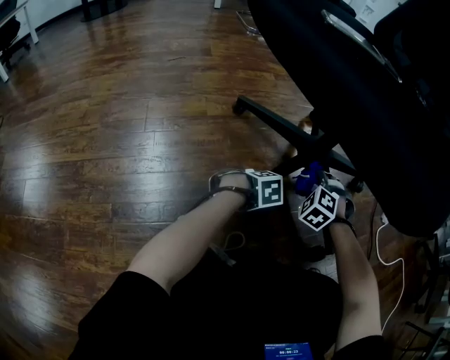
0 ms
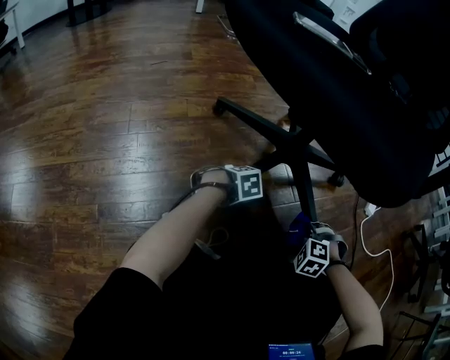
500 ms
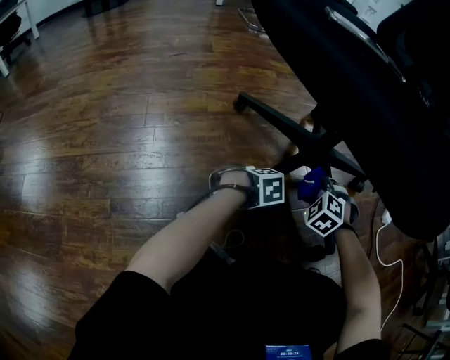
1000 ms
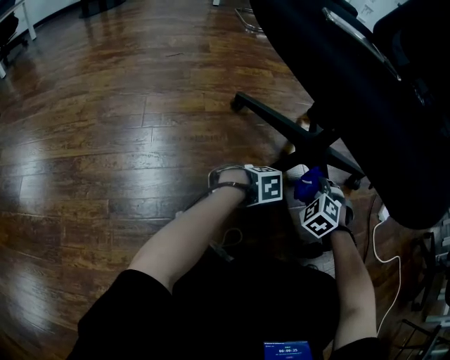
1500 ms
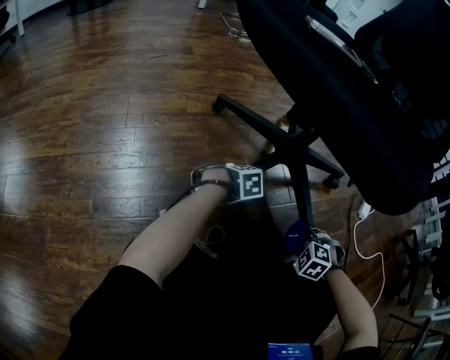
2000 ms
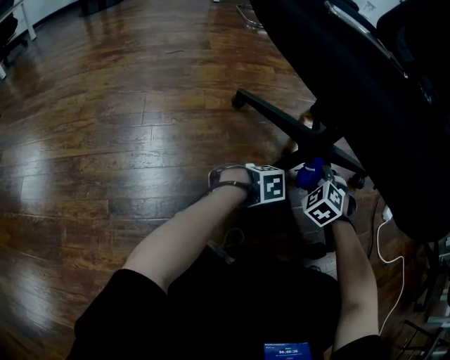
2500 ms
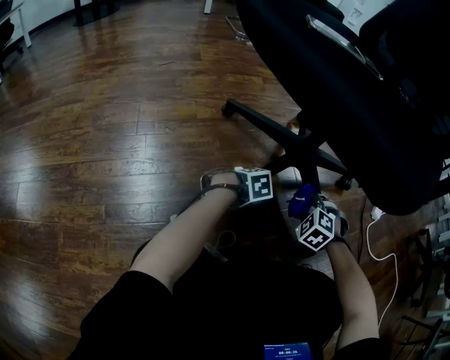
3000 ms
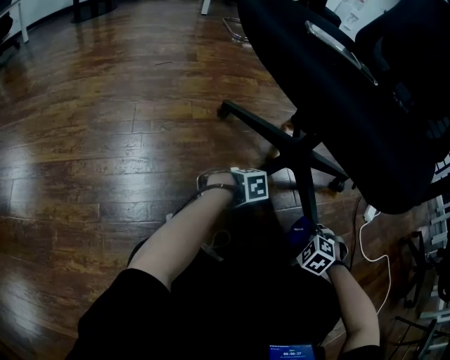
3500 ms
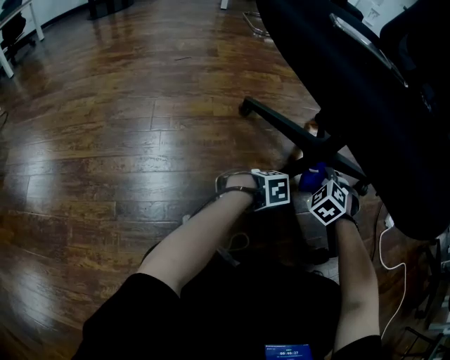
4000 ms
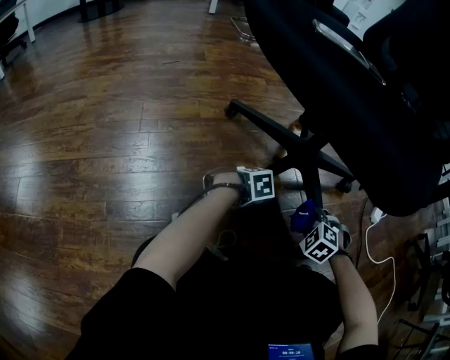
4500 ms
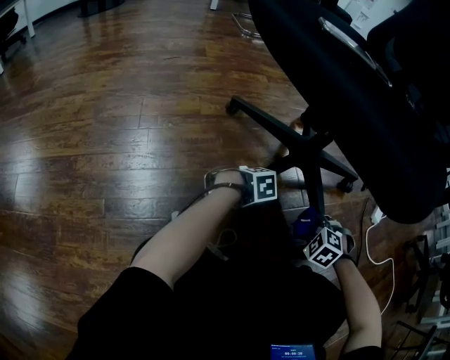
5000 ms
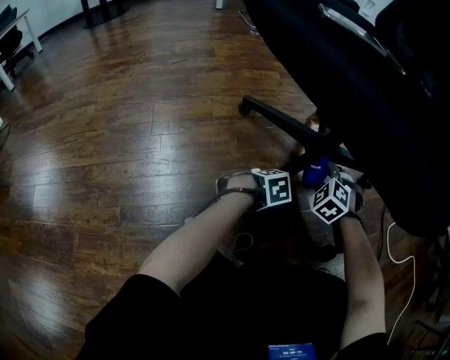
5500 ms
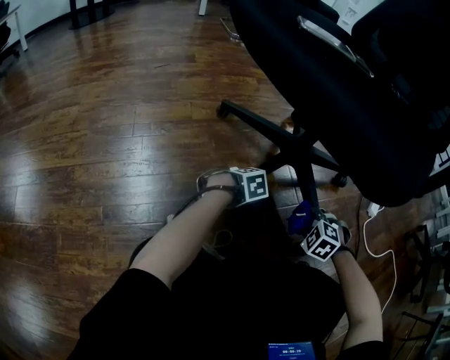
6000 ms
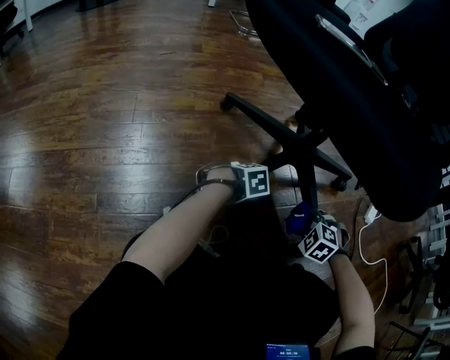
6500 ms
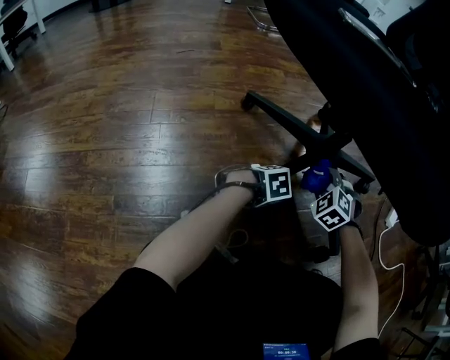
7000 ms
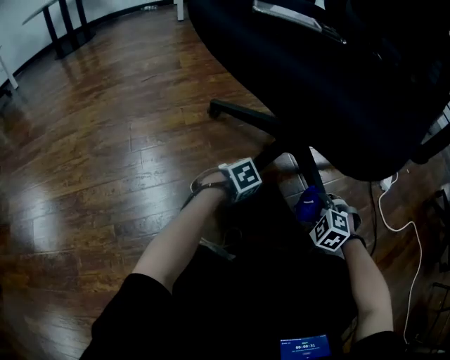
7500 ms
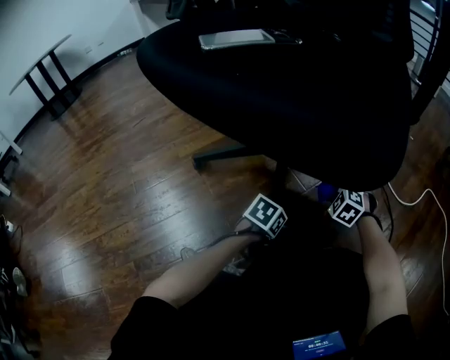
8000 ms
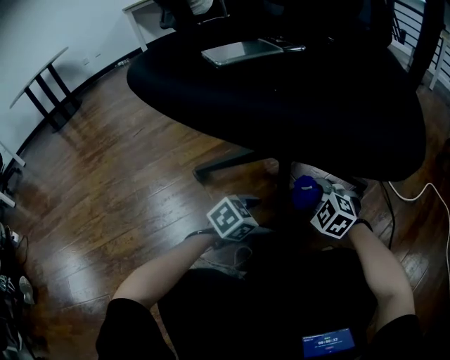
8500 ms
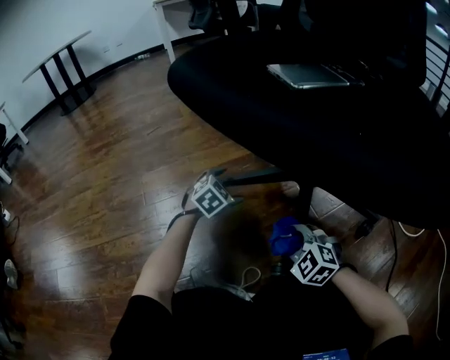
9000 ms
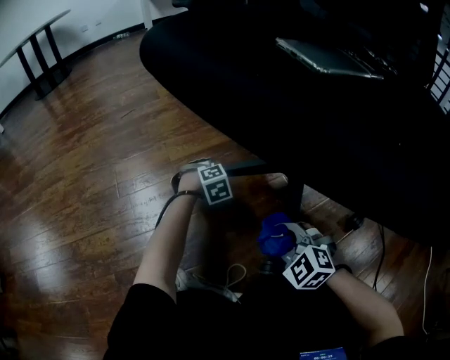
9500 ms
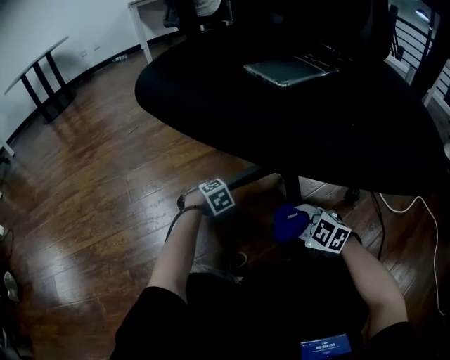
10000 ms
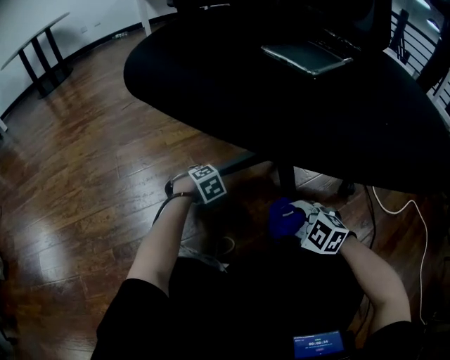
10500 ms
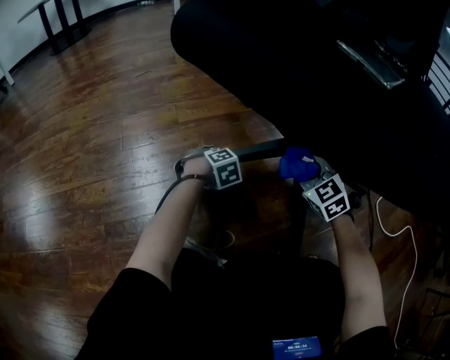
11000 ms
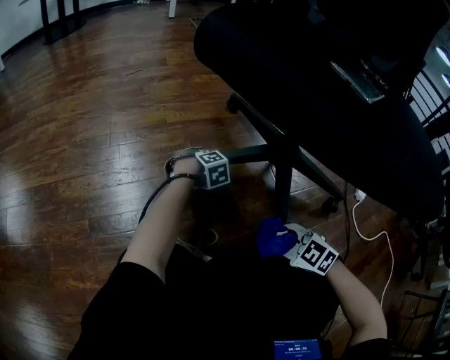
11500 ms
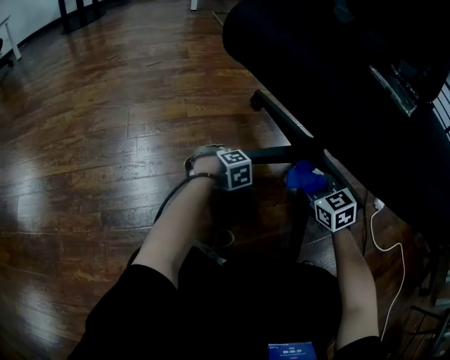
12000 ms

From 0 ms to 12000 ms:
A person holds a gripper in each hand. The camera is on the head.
From 0 ms to 2000 ms: The right gripper goes up and down, about 5 cm each way, reversing 2 times, and swivels approximately 20 degrees.
From 2000 ms to 4000 ms: The right gripper goes up and down, some 5 cm each way, reversing 2 times, and rotates some 20 degrees.
From 4000 ms to 6000 ms: The right gripper goes up and down, roughly 5 cm each way, reversing 2 times.
From 6000 ms to 8000 ms: The right gripper changes place by roughly 10 cm, and swivels approximately 20 degrees.
From 8000 ms to 10000 ms: The right gripper changes place by some 20 cm, and rotates roughly 40 degrees.
From 10000 ms to 12000 ms: The right gripper goes up and down, some 5 cm each way, reversing 2 times, and changes its angle by roughly 30 degrees.

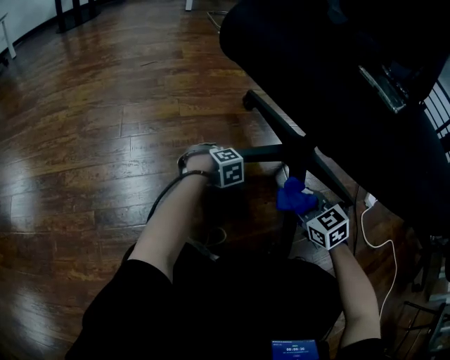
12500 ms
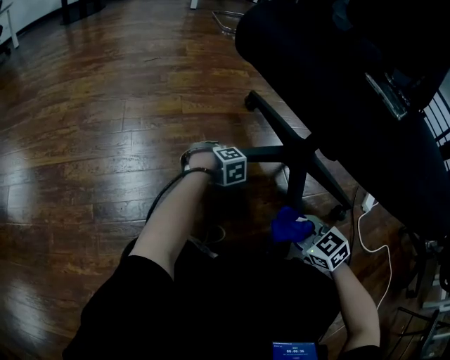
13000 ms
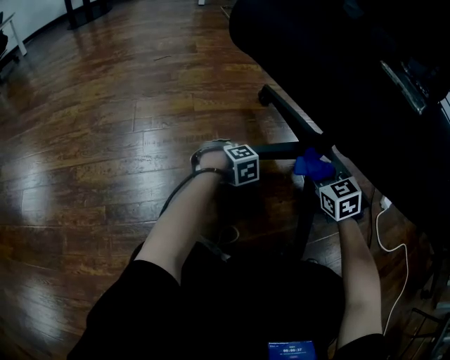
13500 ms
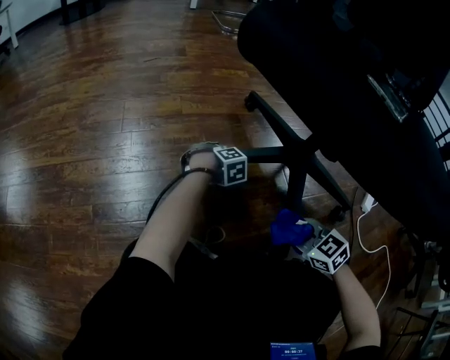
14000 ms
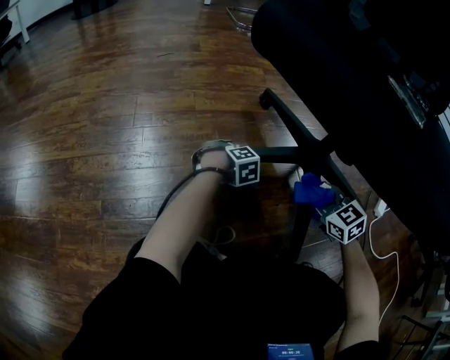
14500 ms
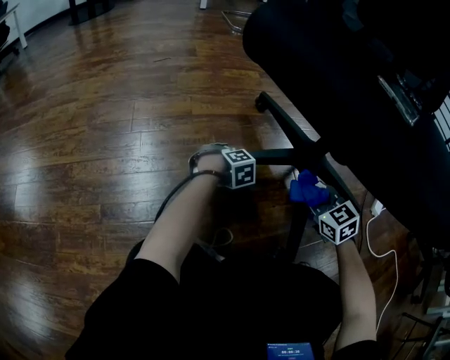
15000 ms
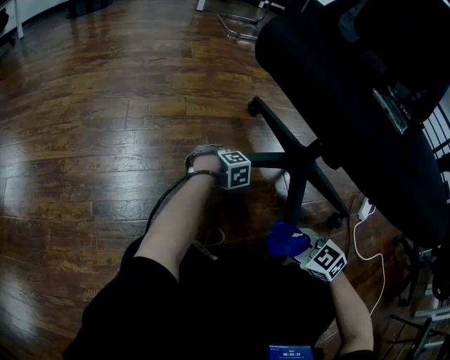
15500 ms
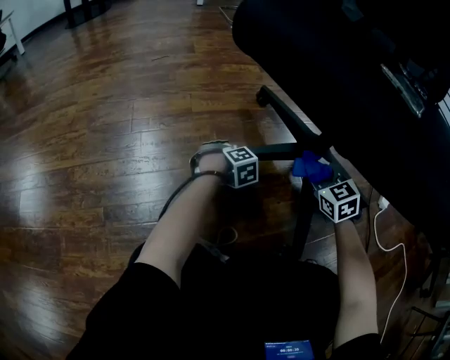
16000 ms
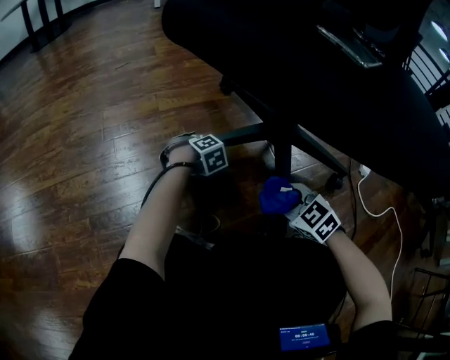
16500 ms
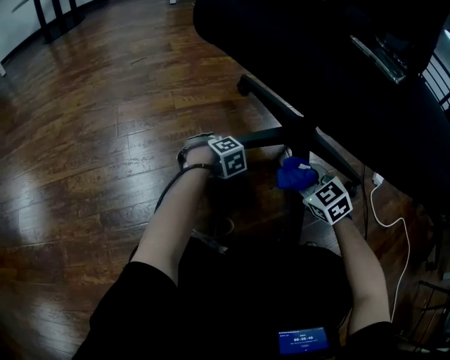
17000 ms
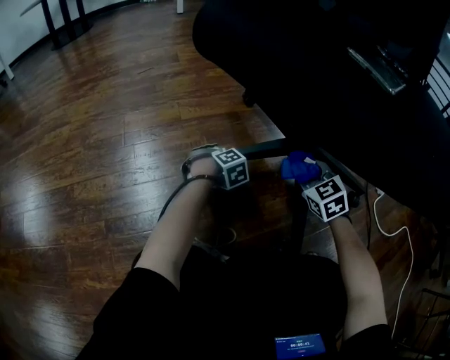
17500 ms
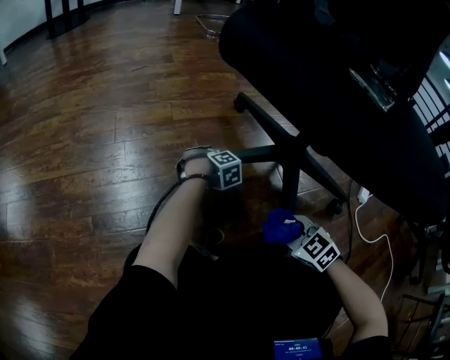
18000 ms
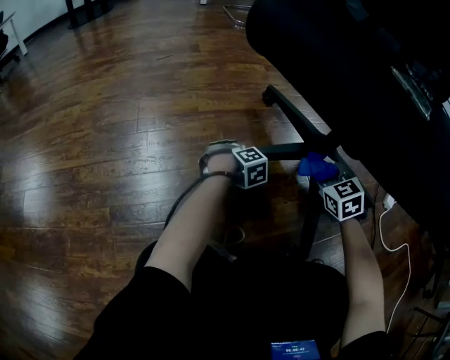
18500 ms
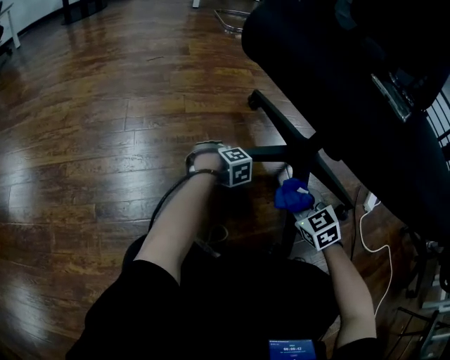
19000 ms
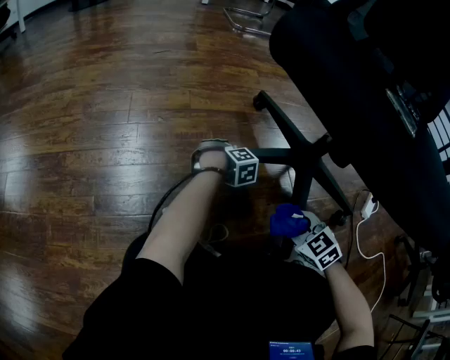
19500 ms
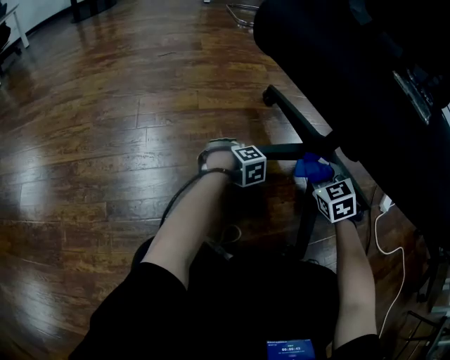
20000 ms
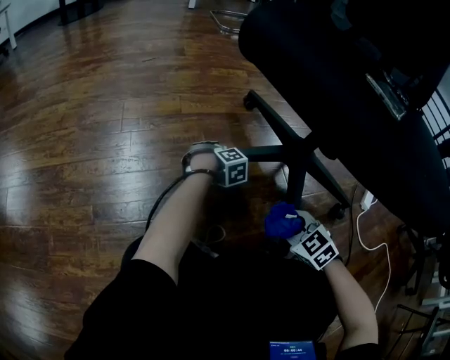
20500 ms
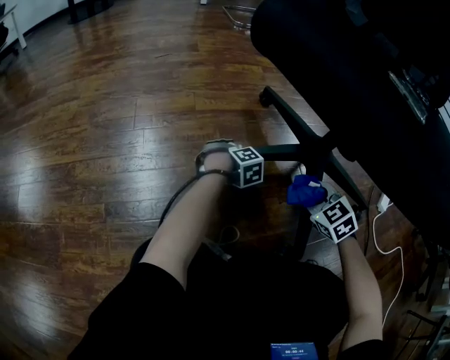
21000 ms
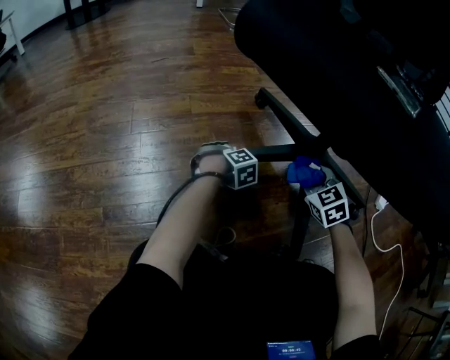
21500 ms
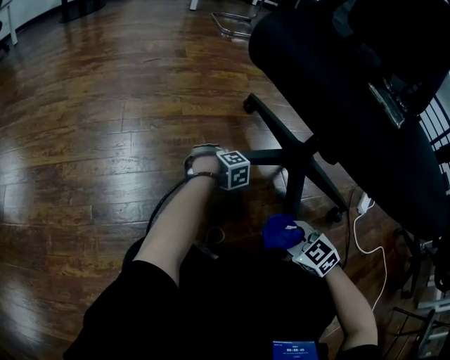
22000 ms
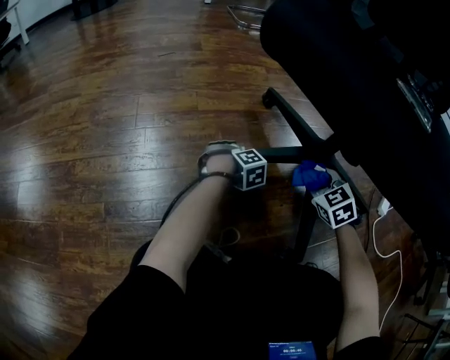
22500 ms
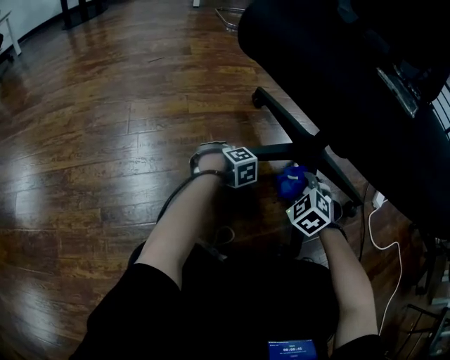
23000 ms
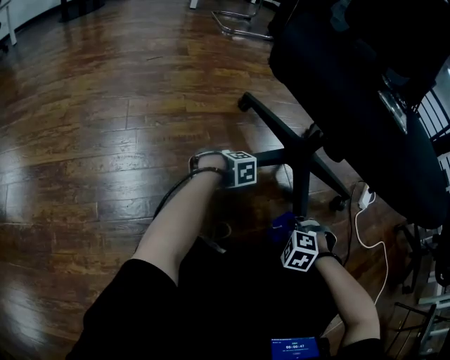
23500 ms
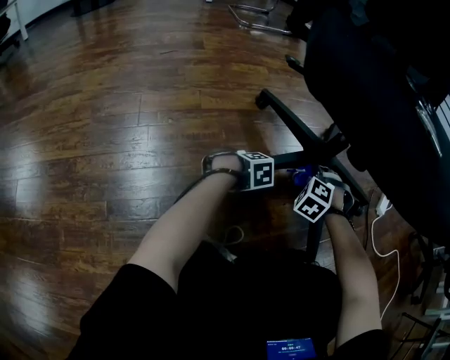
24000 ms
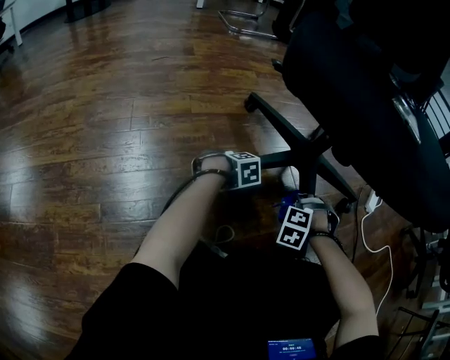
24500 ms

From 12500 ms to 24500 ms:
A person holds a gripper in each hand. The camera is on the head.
From 14500 ms to 16500 ms: The right gripper swings up and down, about 5 cm each way, with 2 reversals.
From 16500 ms to 18500 ms: The right gripper changes place by about 15 cm.
From 18500 ms to 20500 ms: The right gripper moves up and down over approximately 5 cm, changing direction 2 times, and swivels roughly 20 degrees.
From 20500 ms to 22500 ms: The right gripper goes up and down, about 5 cm each way, reversing 2 times.
From 22500 ms to 24500 ms: The right gripper swivels about 60 degrees.

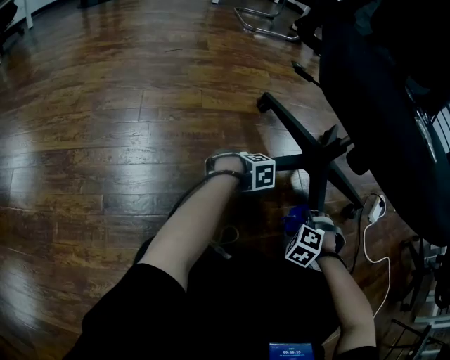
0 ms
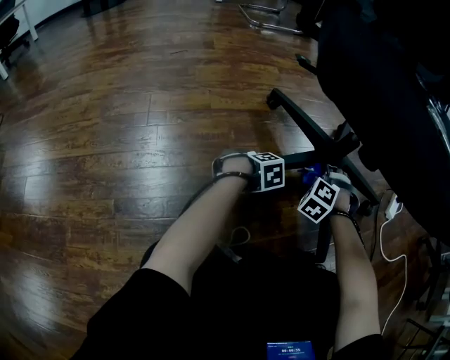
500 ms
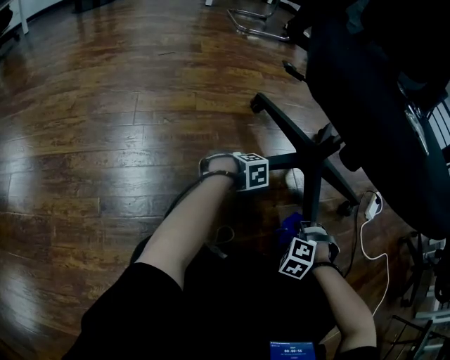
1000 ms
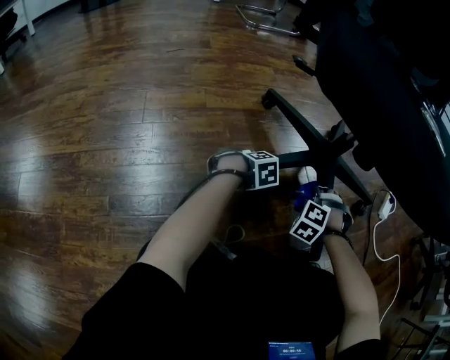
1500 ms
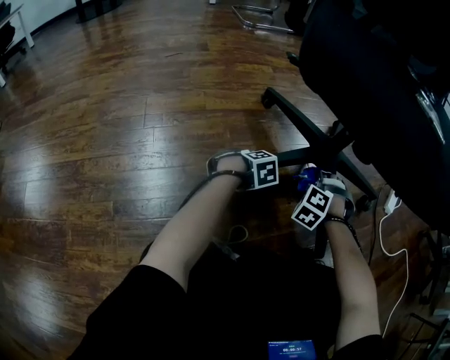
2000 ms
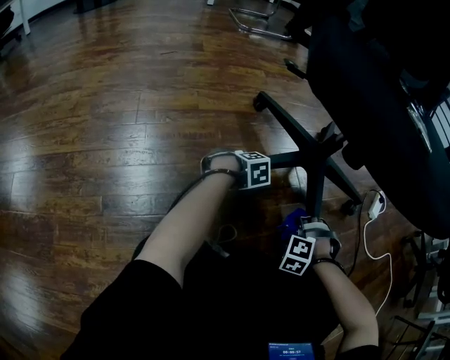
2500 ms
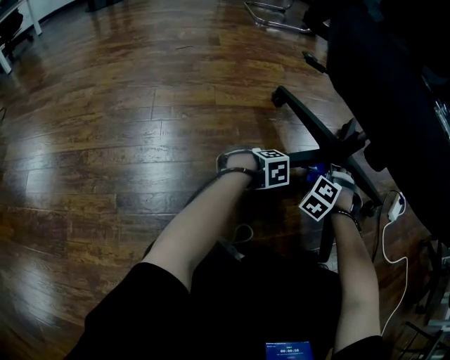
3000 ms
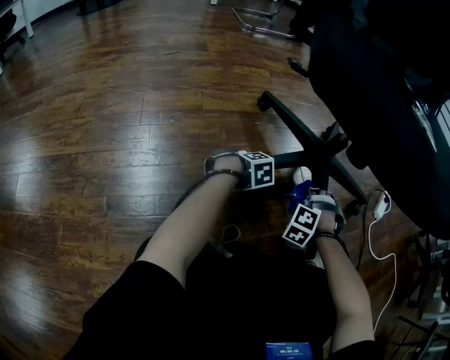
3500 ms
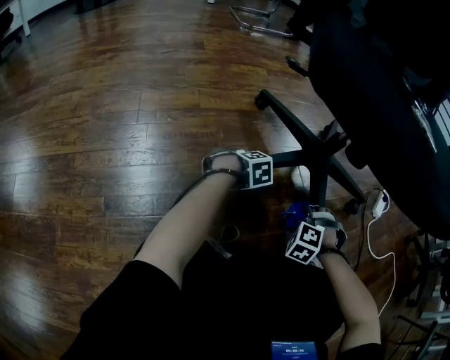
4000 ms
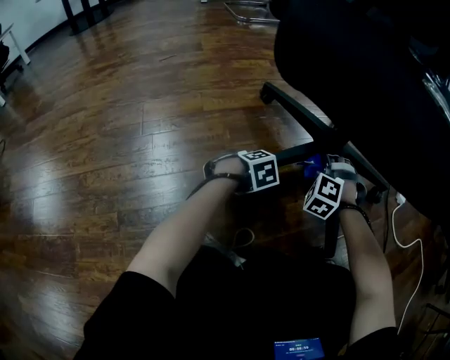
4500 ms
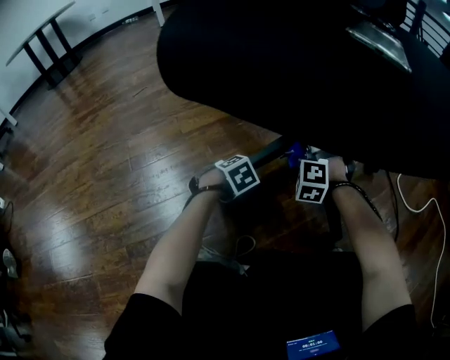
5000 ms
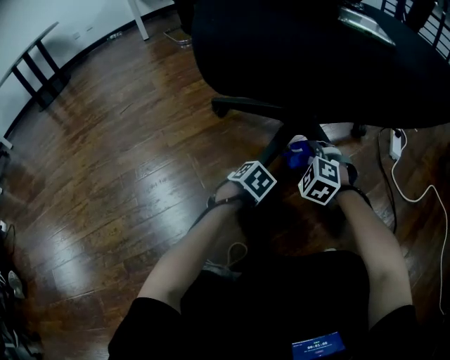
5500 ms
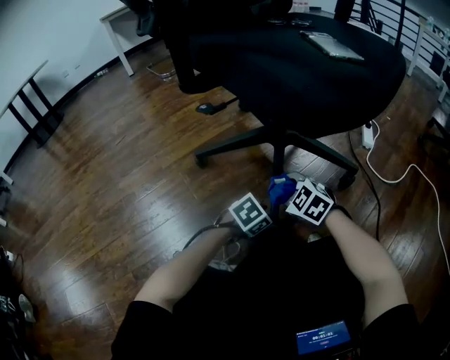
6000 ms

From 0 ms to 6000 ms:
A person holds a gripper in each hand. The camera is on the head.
From 0 ms to 2000 ms: The right gripper swings up and down, some 5 cm each way, with 2 reversals.
From 2000 ms to 4000 ms: The right gripper shifts by approximately 10 cm.
From 4000 ms to 6000 ms: The right gripper is displaced upward by roughly 5 cm, and rotates approximately 60 degrees.
